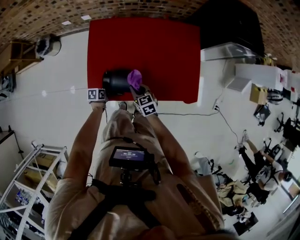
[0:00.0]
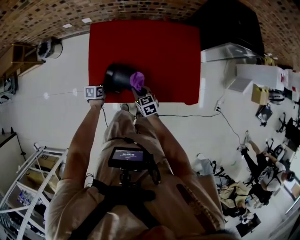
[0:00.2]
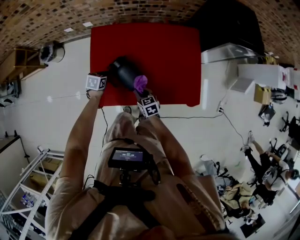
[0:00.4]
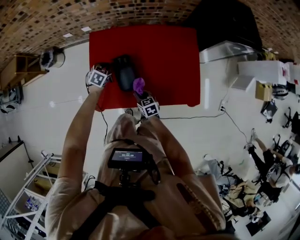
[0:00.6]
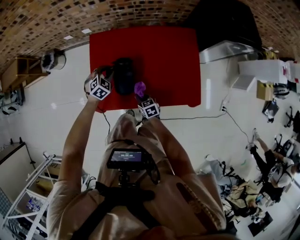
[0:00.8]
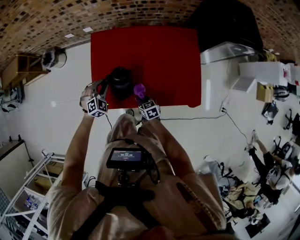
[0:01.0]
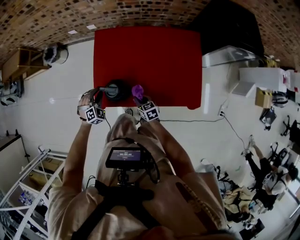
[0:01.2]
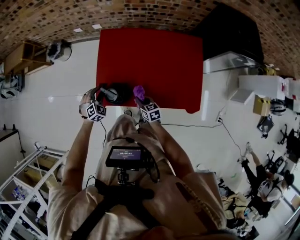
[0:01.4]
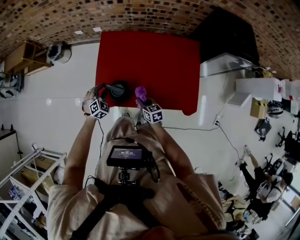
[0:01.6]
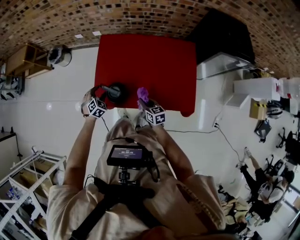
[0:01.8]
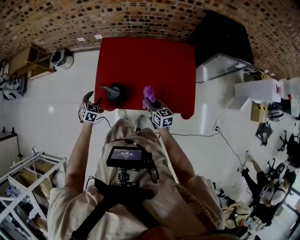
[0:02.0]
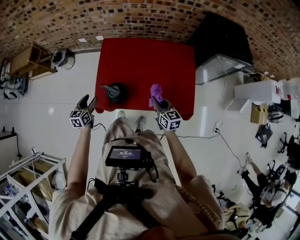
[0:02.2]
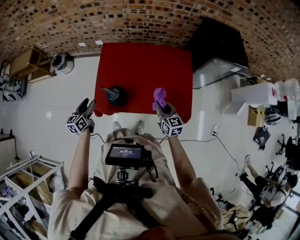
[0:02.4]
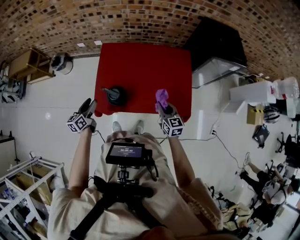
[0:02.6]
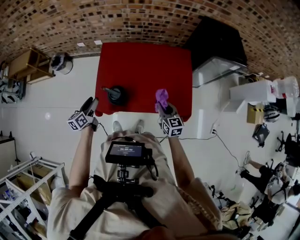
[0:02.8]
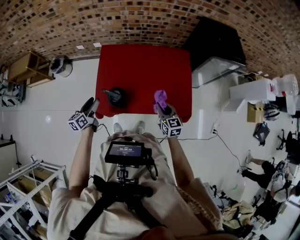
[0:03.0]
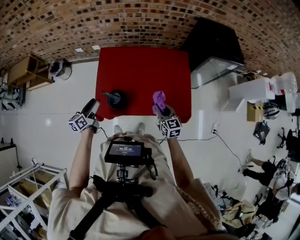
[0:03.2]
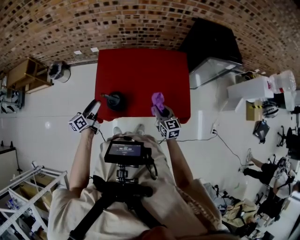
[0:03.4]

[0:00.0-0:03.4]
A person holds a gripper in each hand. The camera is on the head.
0:00.0 to 0:01.6: The left gripper heads upward, covering some 15 cm, and rotates around the line of its fingers by some 70 degrees, clockwise from behind.
0:01.6 to 0:03.4: The right gripper goes some 20 cm upward and to the right, and swivels about 20 degrees. The left gripper moves upward, roughly 15 cm, rolls counterclockwise, seen from behind, by roughly 90 degrees, and opens its fingers.

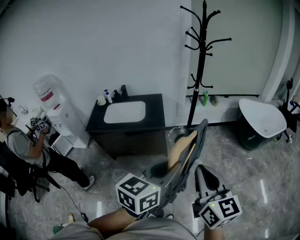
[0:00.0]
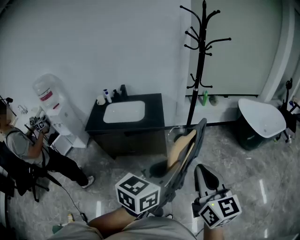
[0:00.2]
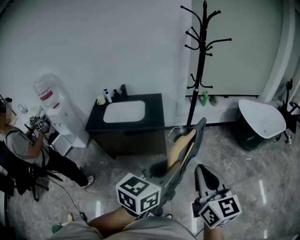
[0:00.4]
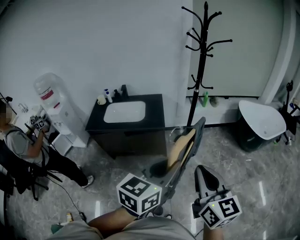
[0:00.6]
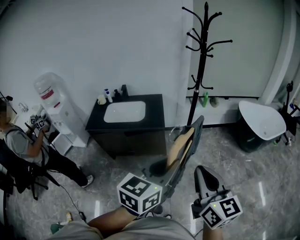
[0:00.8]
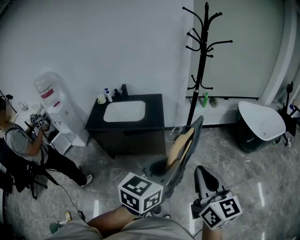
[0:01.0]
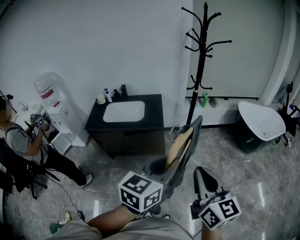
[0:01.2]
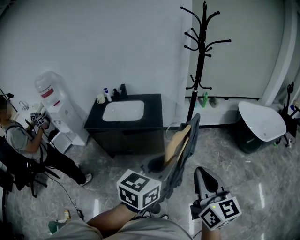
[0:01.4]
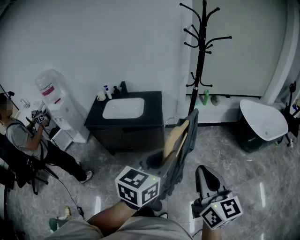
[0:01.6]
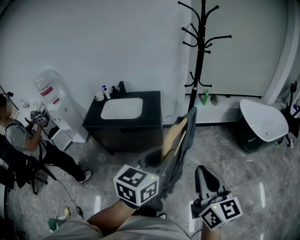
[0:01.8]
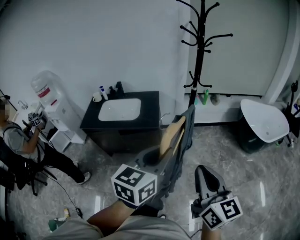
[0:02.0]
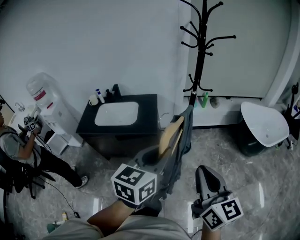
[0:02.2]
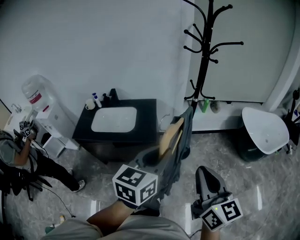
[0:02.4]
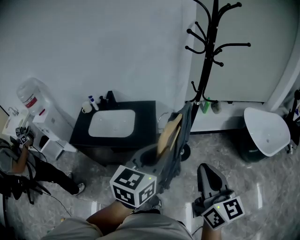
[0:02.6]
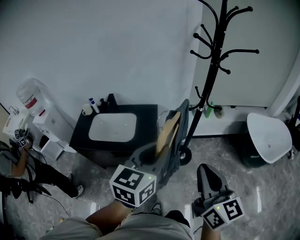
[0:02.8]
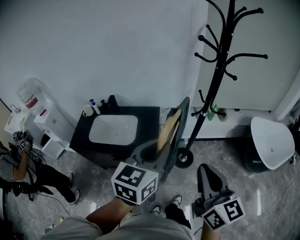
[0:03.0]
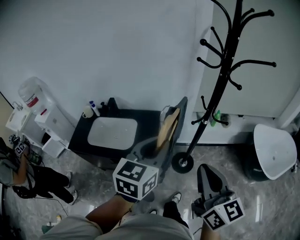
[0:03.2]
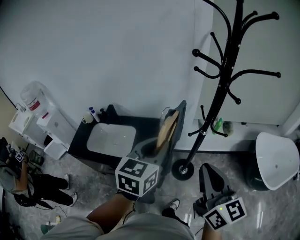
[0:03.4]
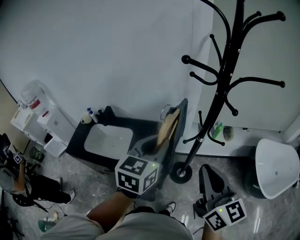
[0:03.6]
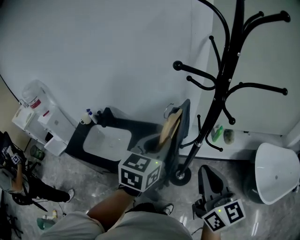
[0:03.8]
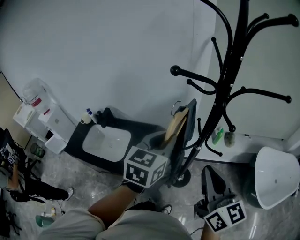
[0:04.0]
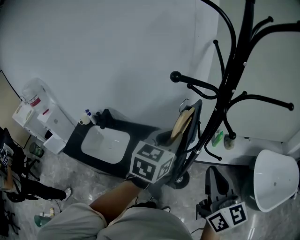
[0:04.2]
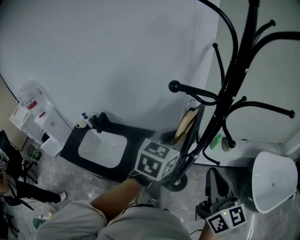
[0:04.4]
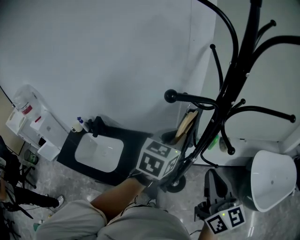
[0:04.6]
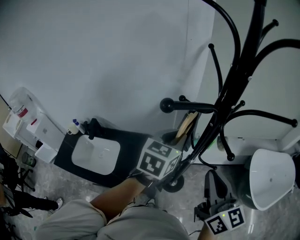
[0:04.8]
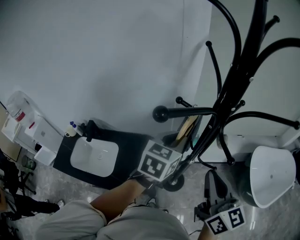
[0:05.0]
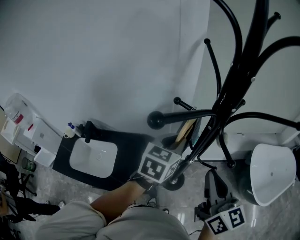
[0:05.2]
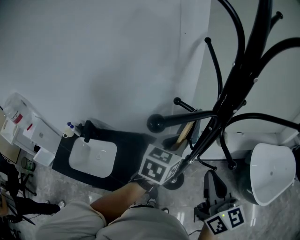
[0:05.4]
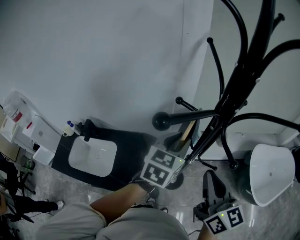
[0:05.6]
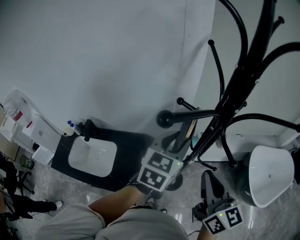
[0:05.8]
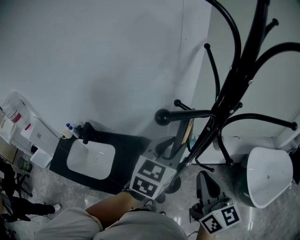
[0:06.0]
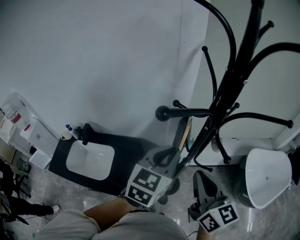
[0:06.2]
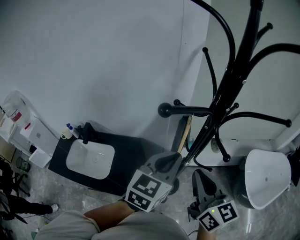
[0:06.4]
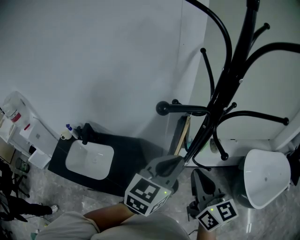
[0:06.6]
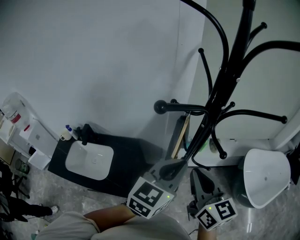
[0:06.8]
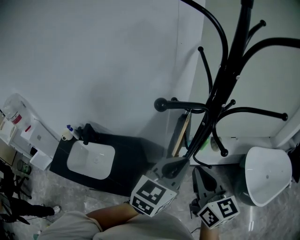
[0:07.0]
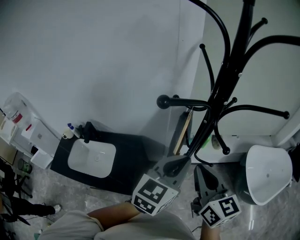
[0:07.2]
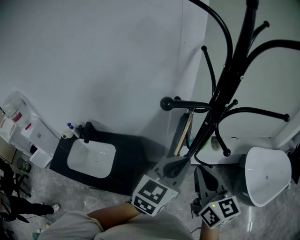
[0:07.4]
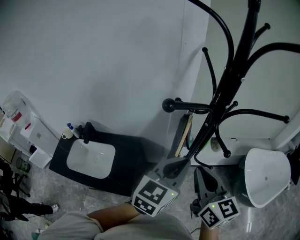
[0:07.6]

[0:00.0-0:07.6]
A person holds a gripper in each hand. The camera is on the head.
0:00.0 to 0:01.6: The right gripper ends up approximately 5 cm from where it was.
0:01.6 to 0:03.0: Both grippers move forward, roughly 35 cm.
0:03.0 to 0:04.6: Both grippers travel together forward and to the right, about 35 cm.
0:04.6 to 0:06.0: The grippers move only a little.
0:06.0 to 0:07.6: The left gripper moves backward, some 10 cm, and closes up.

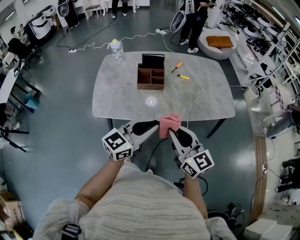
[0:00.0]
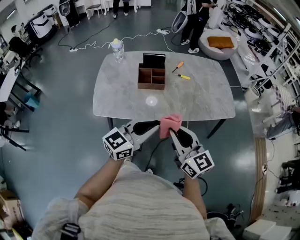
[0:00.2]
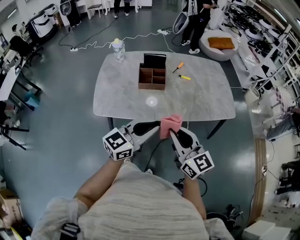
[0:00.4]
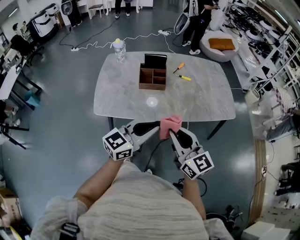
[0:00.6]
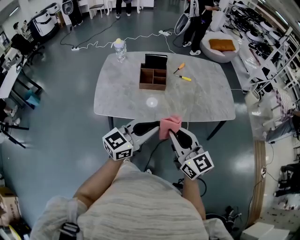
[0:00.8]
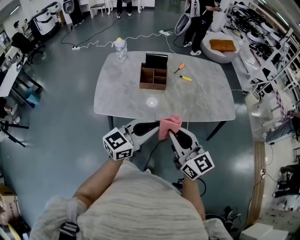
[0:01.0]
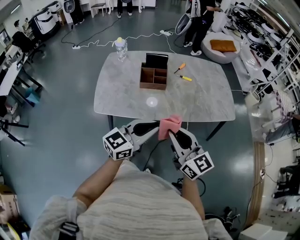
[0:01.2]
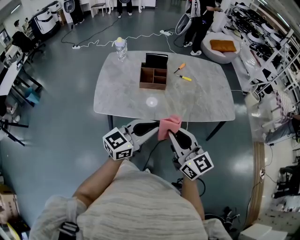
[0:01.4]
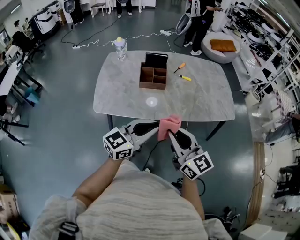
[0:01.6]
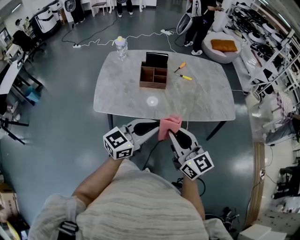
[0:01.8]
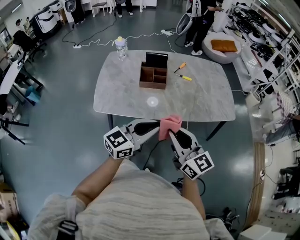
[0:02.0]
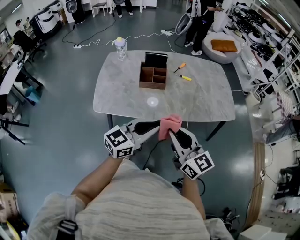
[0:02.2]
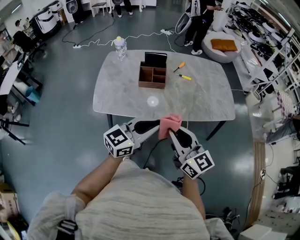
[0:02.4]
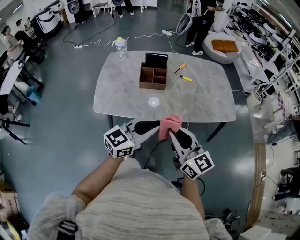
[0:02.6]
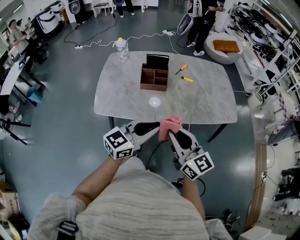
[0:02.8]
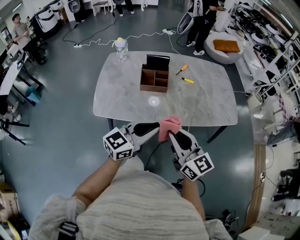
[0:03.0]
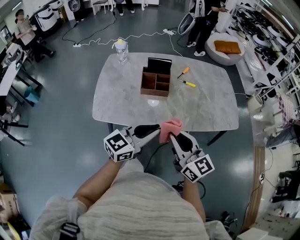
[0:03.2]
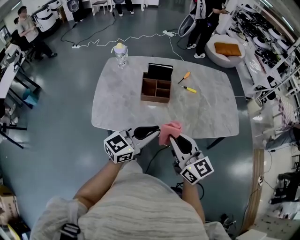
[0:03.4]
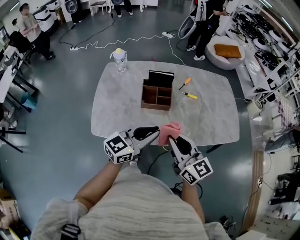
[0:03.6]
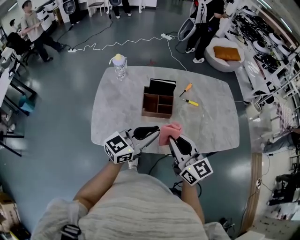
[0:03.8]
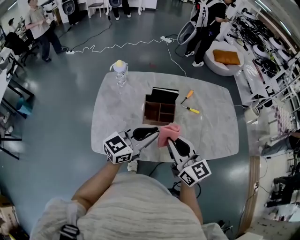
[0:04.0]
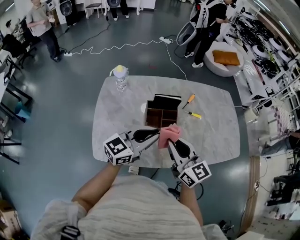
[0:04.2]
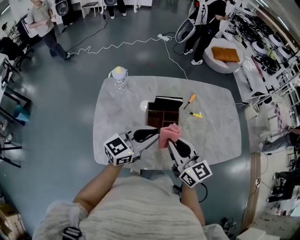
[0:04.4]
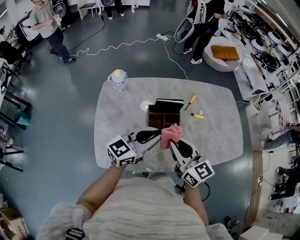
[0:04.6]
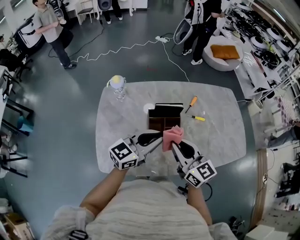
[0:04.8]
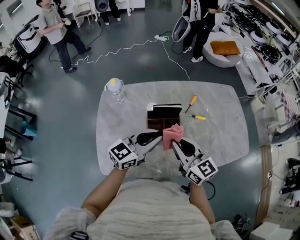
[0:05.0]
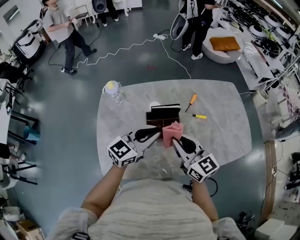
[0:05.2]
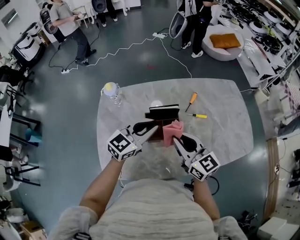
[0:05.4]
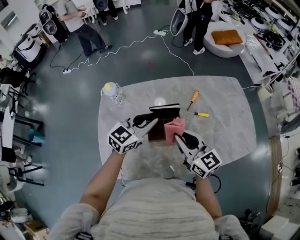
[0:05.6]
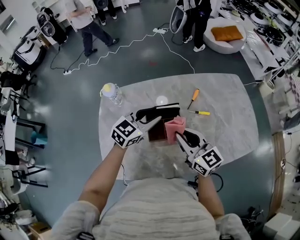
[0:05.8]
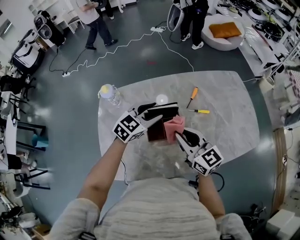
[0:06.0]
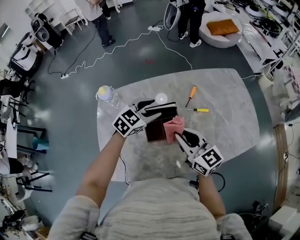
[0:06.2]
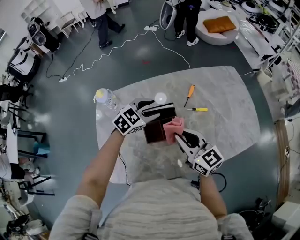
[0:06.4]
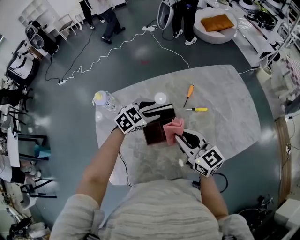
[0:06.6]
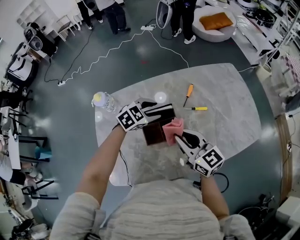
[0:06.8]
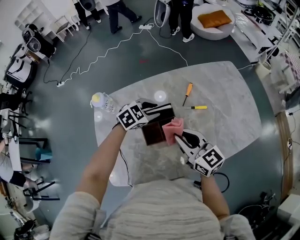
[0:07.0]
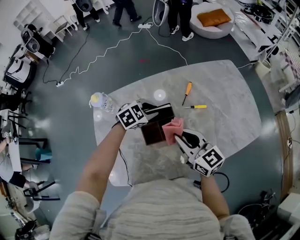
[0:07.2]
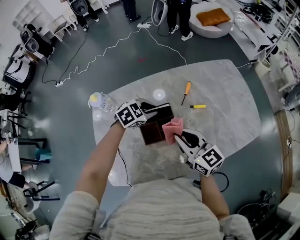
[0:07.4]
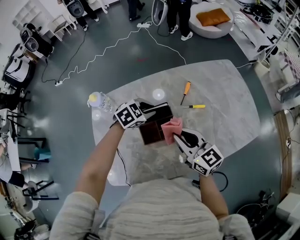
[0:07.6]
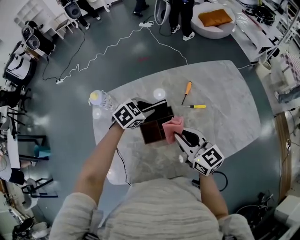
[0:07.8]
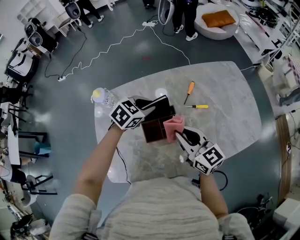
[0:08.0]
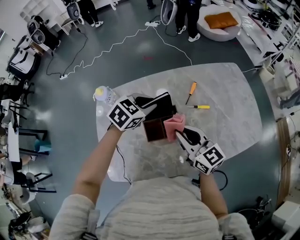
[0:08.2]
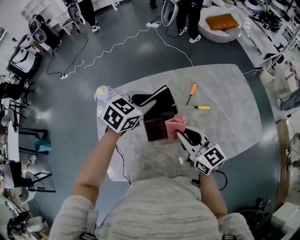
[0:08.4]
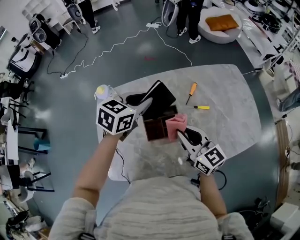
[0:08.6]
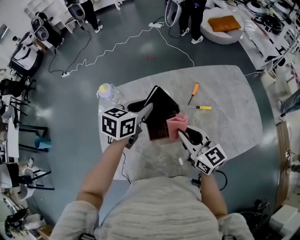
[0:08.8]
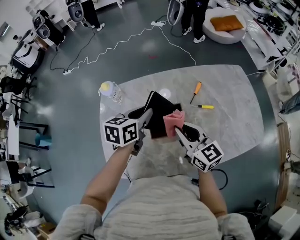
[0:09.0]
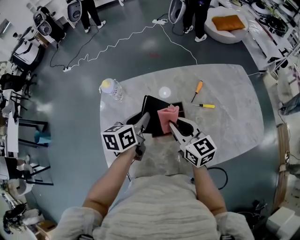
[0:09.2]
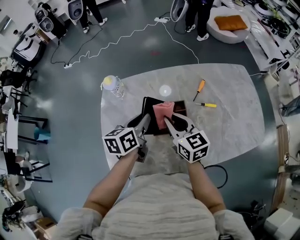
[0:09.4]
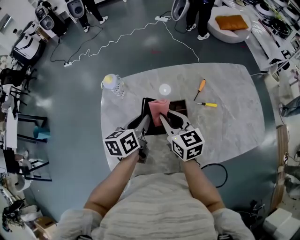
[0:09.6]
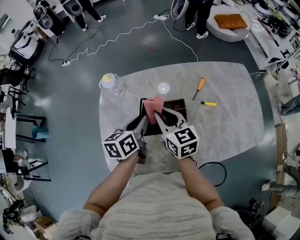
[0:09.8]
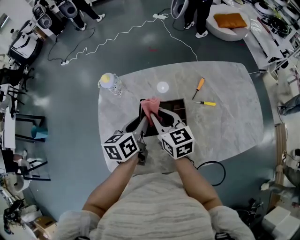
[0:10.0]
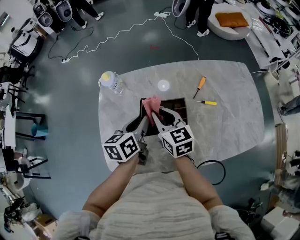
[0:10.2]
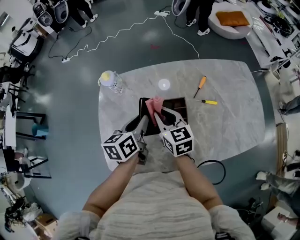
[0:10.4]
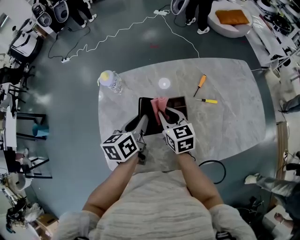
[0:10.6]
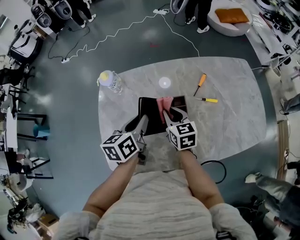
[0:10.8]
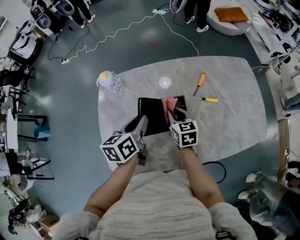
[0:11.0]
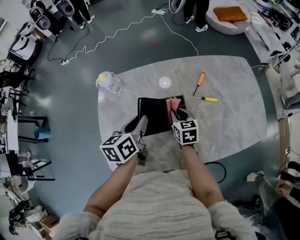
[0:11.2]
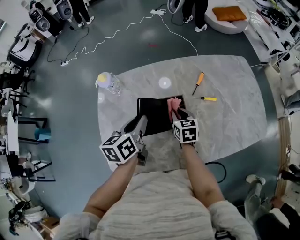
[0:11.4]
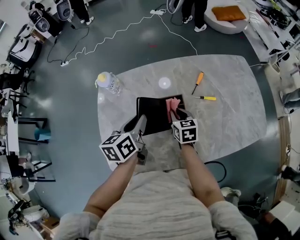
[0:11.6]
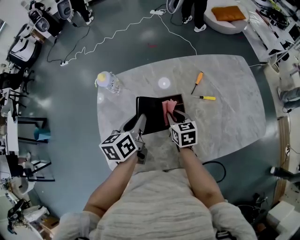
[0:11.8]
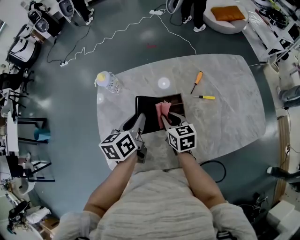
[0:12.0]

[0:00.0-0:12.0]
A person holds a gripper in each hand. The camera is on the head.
0:00.0 to 0:03.0: There are only small adjustments of the grippers.
0:03.0 to 0:04.4: Both grippers travel together forward and to the left, some 30 cm.
0:04.4 to 0:06.0: The left gripper heads forward, covering some 20 cm, changes its angle by some 30 degrees, and opens. Meanwhile the right gripper moves forward and to the right, approximately 15 cm.
0:06.0 to 0:07.6: The left gripper goes roughly 10 cm downward, rotates approximately 30 degrees, and closes its fingers.
0:07.6 to 0:09.0: The left gripper travels upward, to the left and backward by about 15 cm, and rolls counterclockwise, seen from behind, by some 50 degrees.
0:09.0 to 0:10.4: The left gripper moves about 5 cm, and turns by about 20 degrees. The right gripper goes roughly 10 cm to the left, forward and downward.
0:10.4 to 0:12.0: The right gripper moves downward, roughly 5 cm.

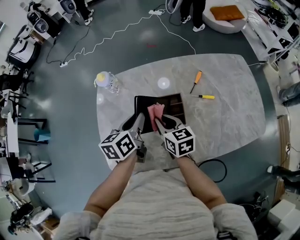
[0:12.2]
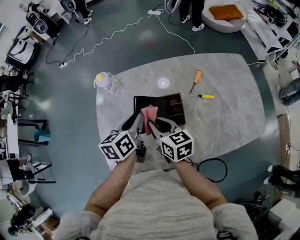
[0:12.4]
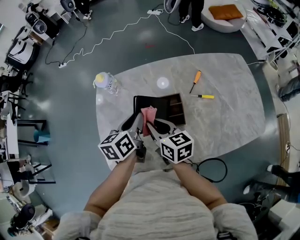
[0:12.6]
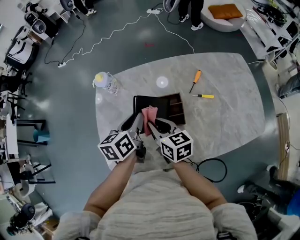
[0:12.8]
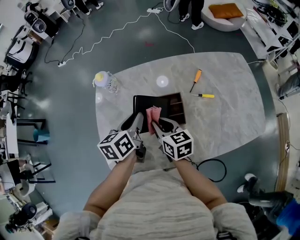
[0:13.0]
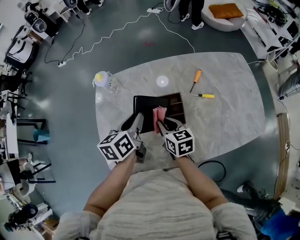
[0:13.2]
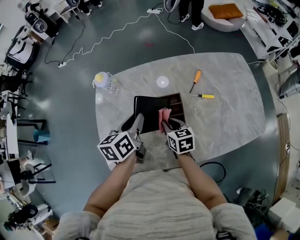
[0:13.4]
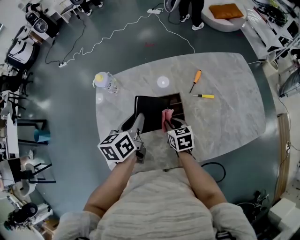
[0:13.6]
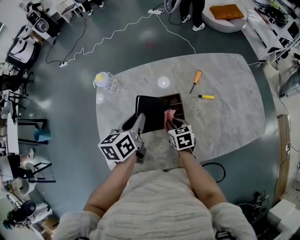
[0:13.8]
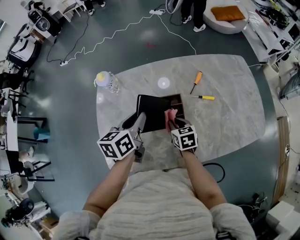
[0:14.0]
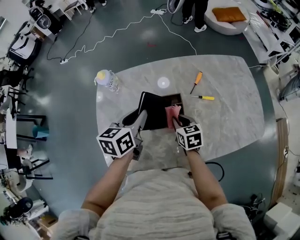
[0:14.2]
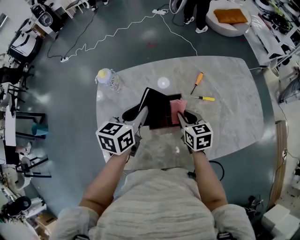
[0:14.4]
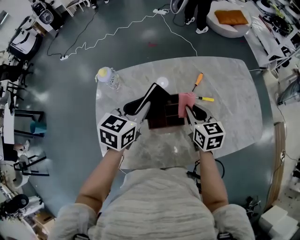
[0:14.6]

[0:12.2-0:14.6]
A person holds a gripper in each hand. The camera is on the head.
0:12.2 to 0:13.4: The right gripper shifts some 5 cm downward.
0:13.4 to 0:14.6: The left gripper moves upward, some 5 cm, and changes its angle by approximately 30 degrees. Meanwhile the right gripper travels upward and to the right by some 15 cm.